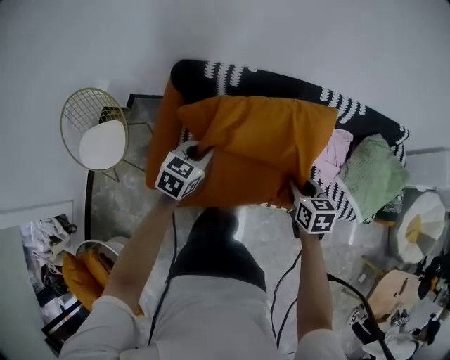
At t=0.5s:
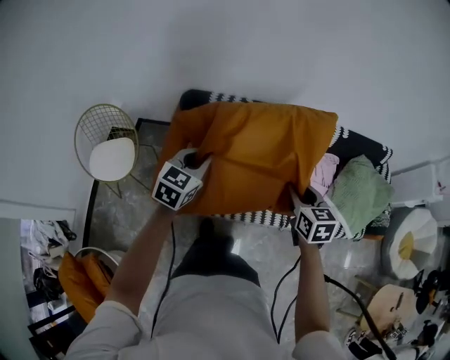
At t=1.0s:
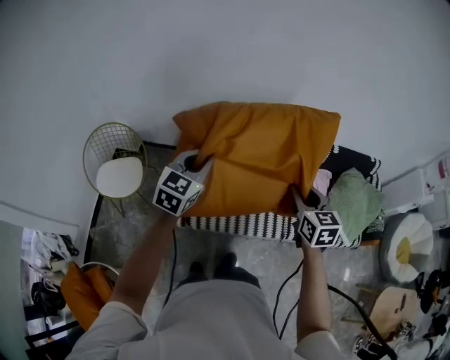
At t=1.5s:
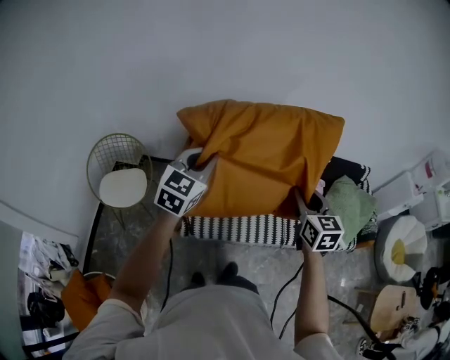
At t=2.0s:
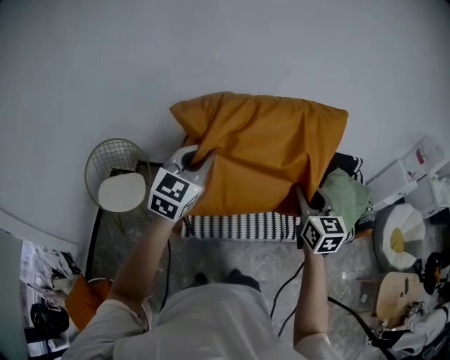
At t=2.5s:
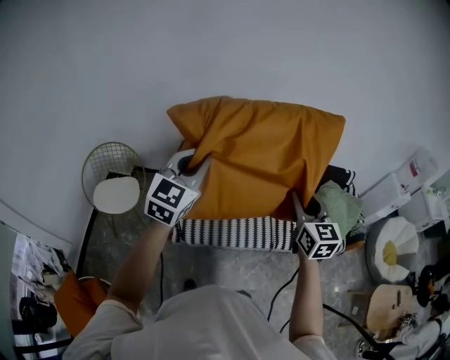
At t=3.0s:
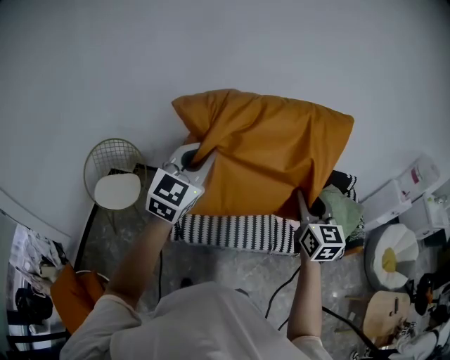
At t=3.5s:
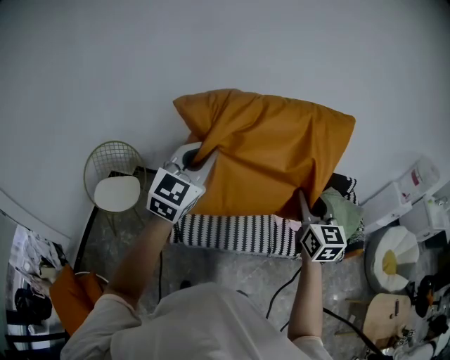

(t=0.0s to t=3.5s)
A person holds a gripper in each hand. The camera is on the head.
t=0.0s - t=2.0s: Both grippers travel together upward and backward, roughly 50 cm. The left gripper tips its fingers upward by some 30 degrees. The right gripper angles its fingers upward, by about 30 degrees.
t=2.0s - t=3.5s: The left gripper travels upward and to the right by about 10 cm; the right gripper travels to the right and upward by approximately 10 cm.

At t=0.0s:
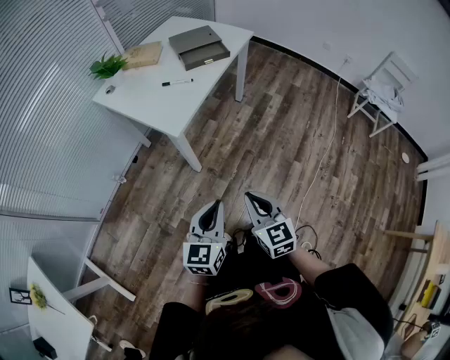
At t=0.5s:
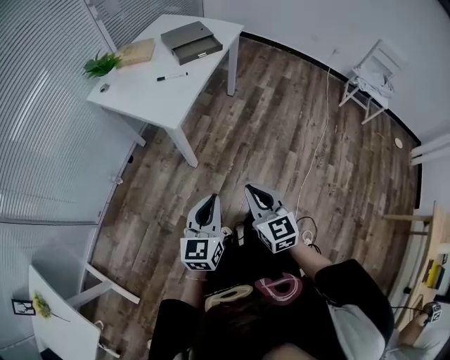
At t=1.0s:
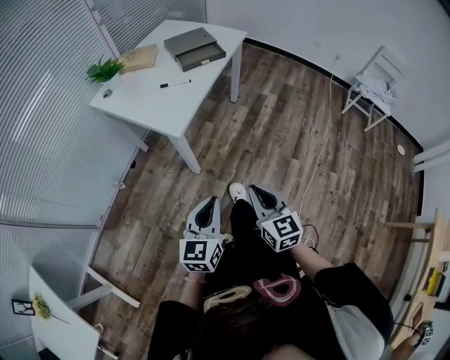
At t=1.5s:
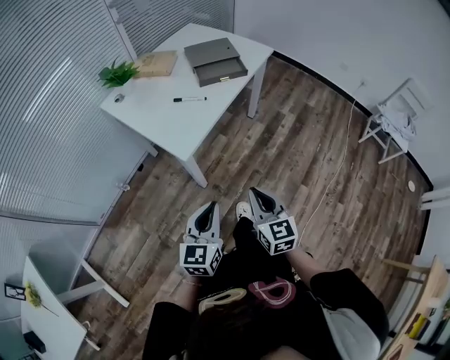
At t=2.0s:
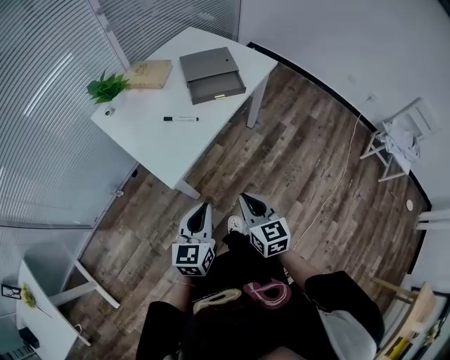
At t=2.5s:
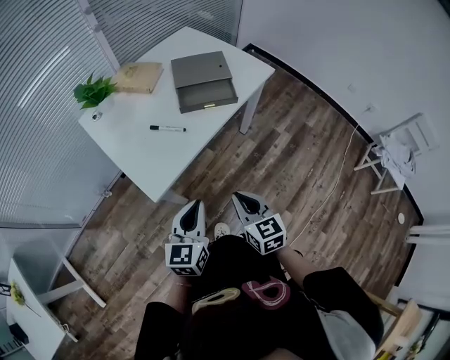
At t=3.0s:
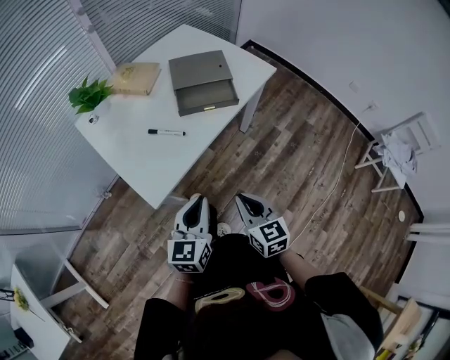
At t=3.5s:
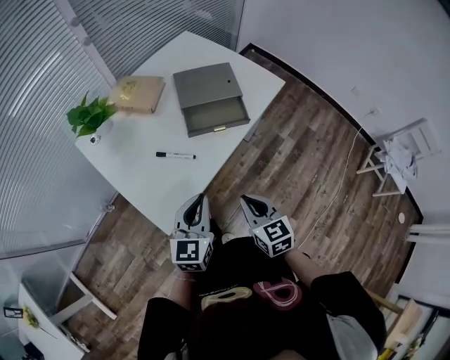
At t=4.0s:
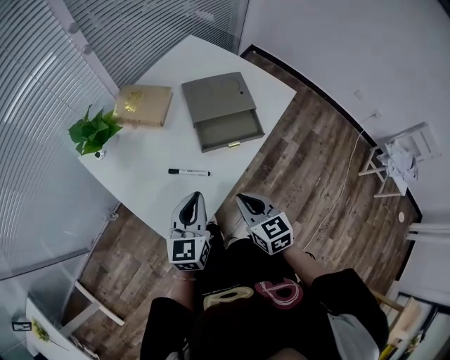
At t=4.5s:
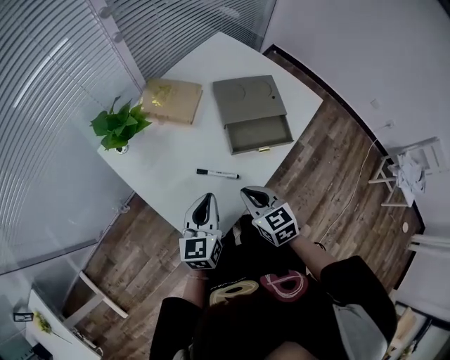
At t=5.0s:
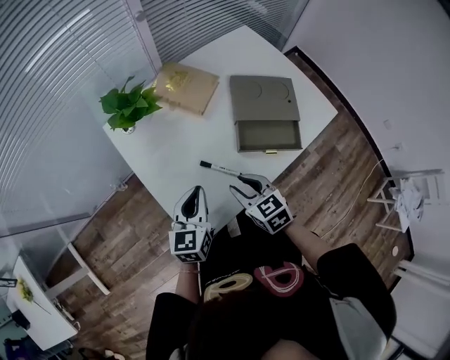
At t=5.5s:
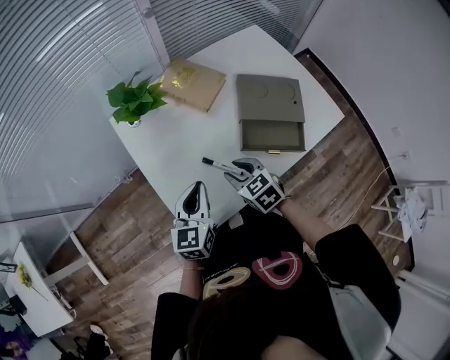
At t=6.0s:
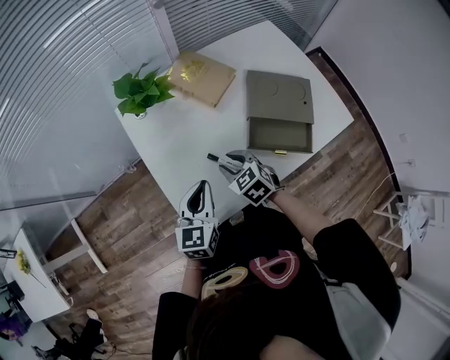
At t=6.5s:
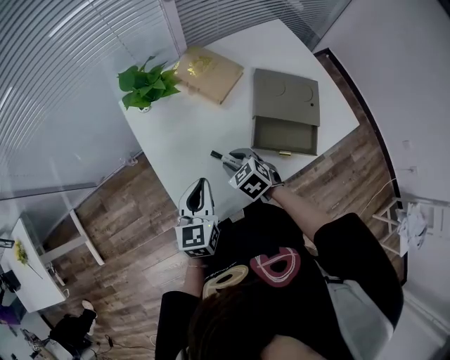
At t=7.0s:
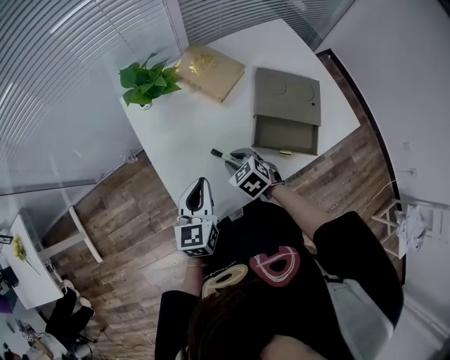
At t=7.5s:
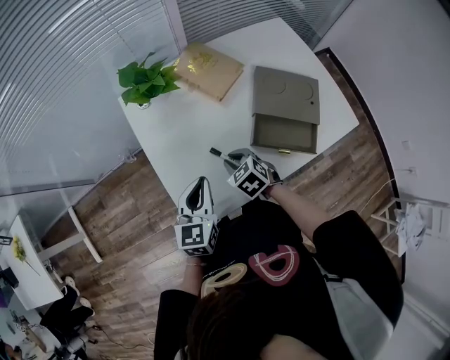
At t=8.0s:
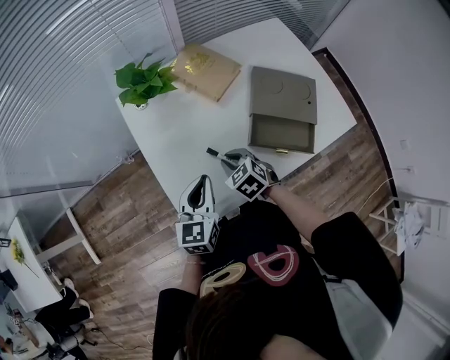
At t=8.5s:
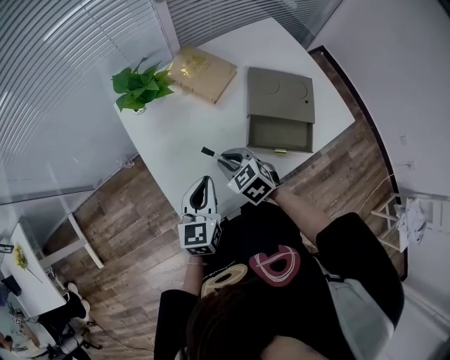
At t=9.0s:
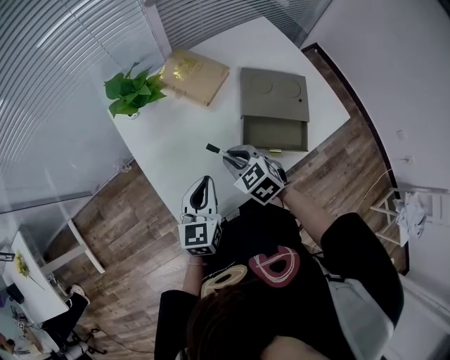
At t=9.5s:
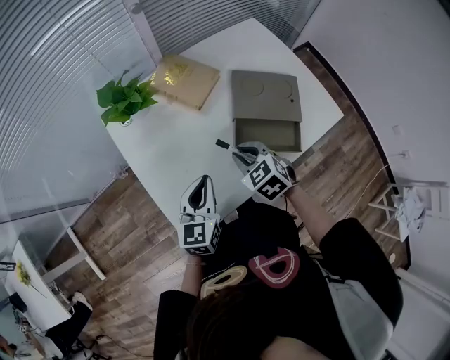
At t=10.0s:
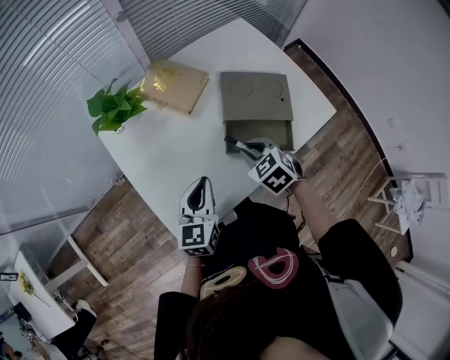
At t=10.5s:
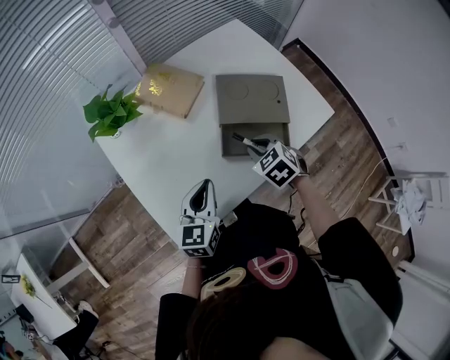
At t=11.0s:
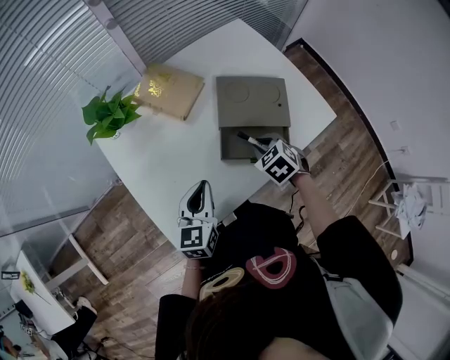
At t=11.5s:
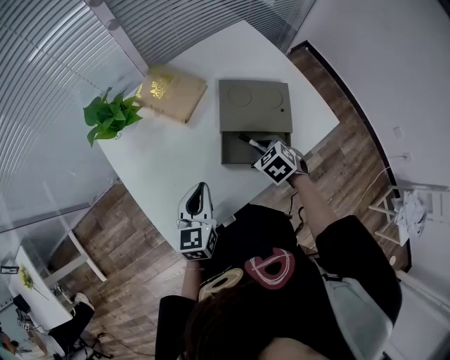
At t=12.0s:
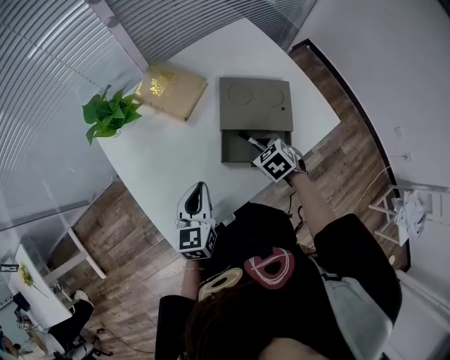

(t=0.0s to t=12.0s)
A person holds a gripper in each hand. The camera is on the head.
t=0.0s - t=2.0s: The grippers both shift forward by roughly 25 cm.
t=2.0s - t=4.0s: Both grippers move forward, some 25 cm.
t=4.0s - t=6.0s: The right gripper changes place by about 20 cm, turns by some 40 degrees, and opens up, while the left gripper changes place by about 10 cm, and changes its angle by about 20 degrees.
t=6.0s - t=8.0s: The grippers move only a little.
t=8.0s - t=10.0s: The left gripper heads to the right, covering some 5 cm, while the right gripper heads to the right and upward, covering some 15 cm.
t=10.0s - t=12.0s: The right gripper heads to the right and downward, covering approximately 10 cm.

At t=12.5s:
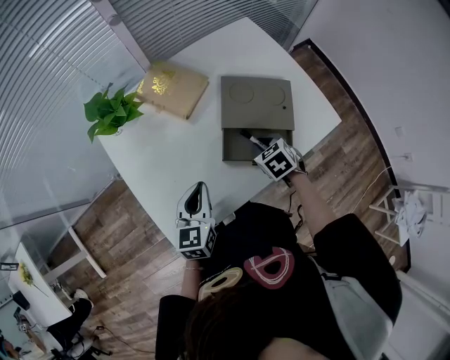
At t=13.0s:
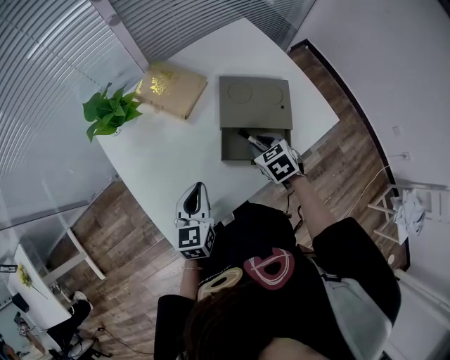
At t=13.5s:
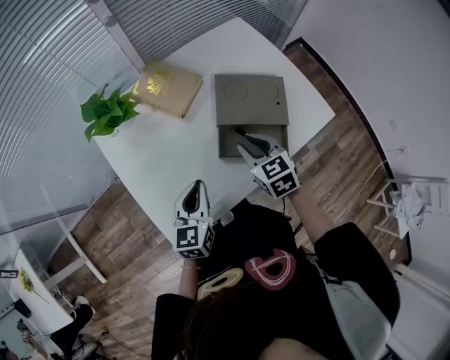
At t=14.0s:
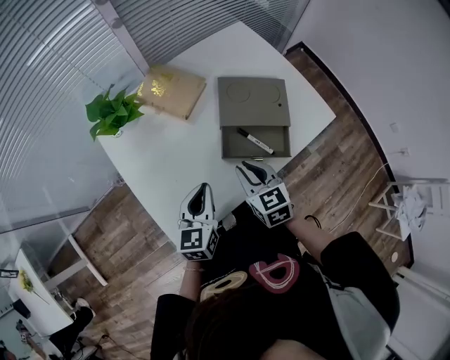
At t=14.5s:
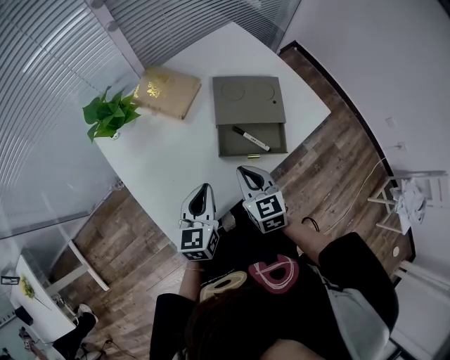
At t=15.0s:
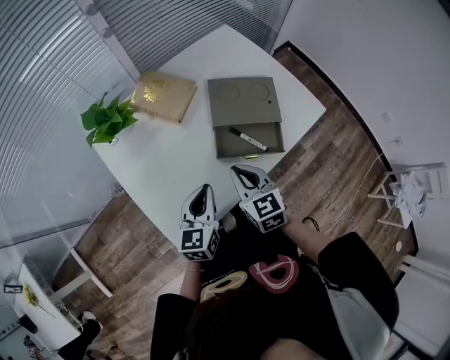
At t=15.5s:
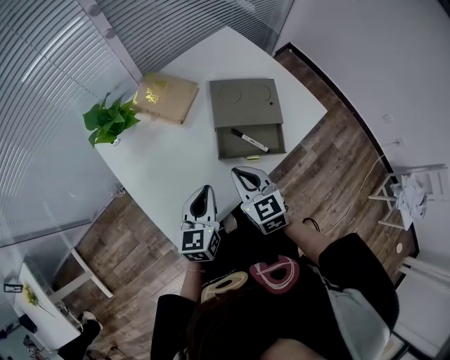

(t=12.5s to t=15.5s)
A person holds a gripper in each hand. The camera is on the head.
t=12.5s - t=14.0s: The right gripper travels upward, to the left and backward by roughly 15 cm, and turns by some 30 degrees.
t=14.0s - t=15.5s: The grippers move only a little.

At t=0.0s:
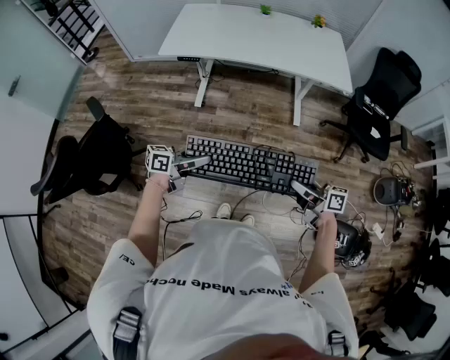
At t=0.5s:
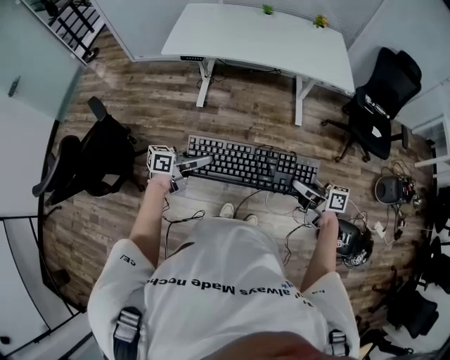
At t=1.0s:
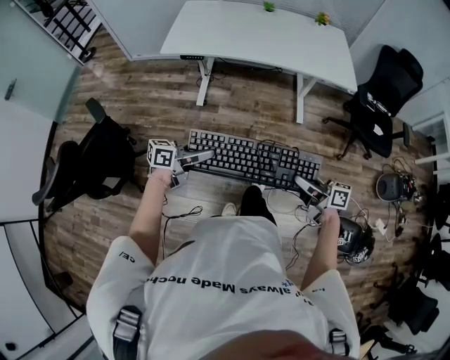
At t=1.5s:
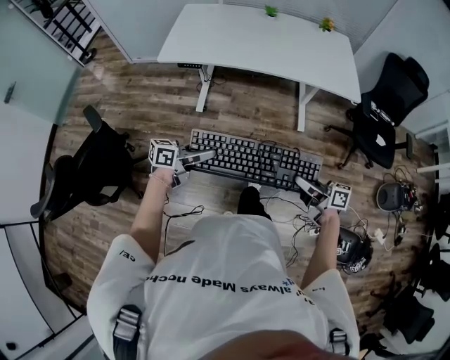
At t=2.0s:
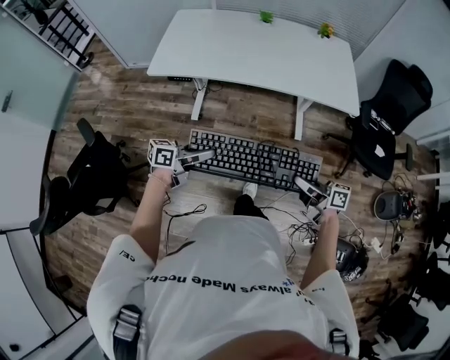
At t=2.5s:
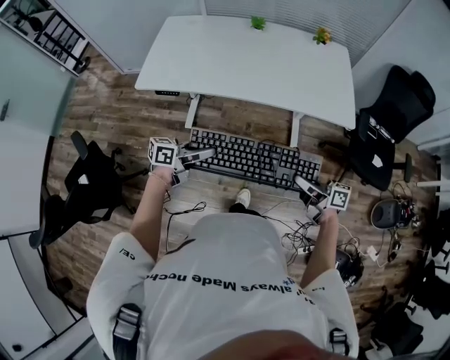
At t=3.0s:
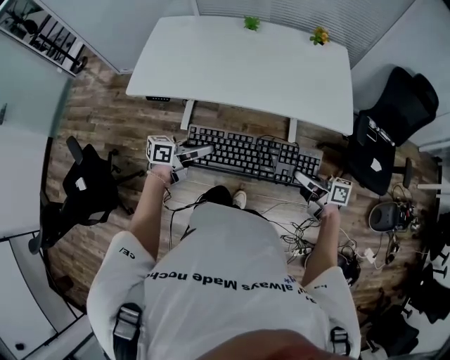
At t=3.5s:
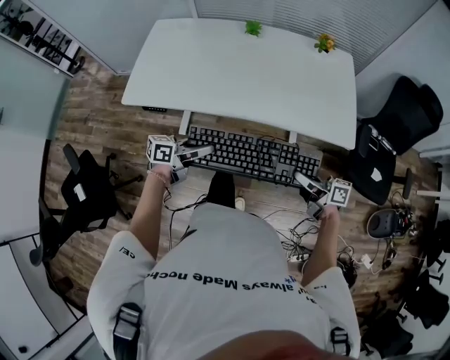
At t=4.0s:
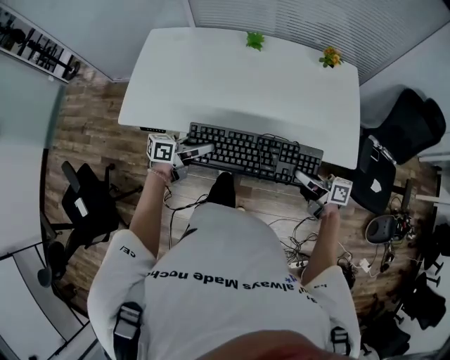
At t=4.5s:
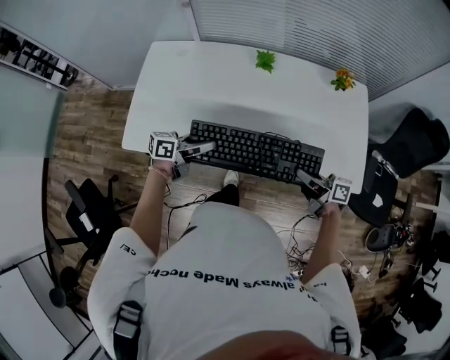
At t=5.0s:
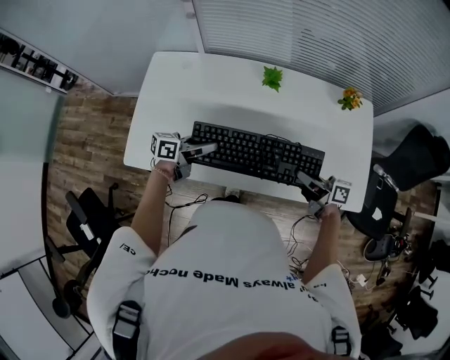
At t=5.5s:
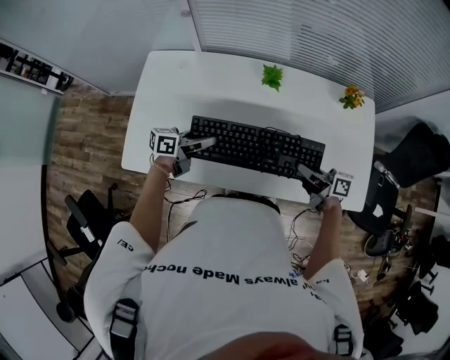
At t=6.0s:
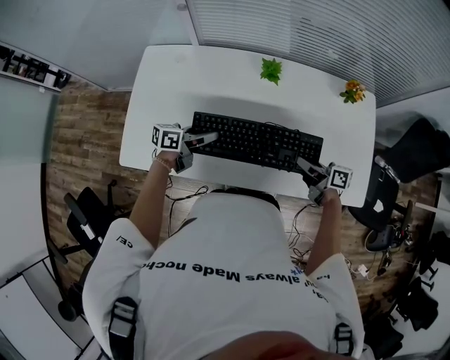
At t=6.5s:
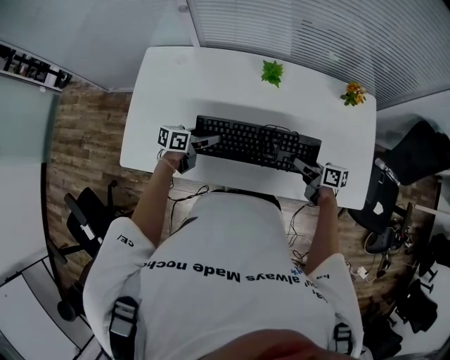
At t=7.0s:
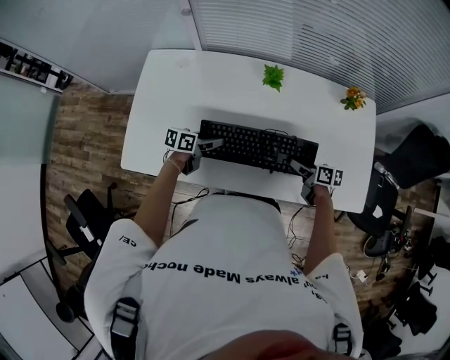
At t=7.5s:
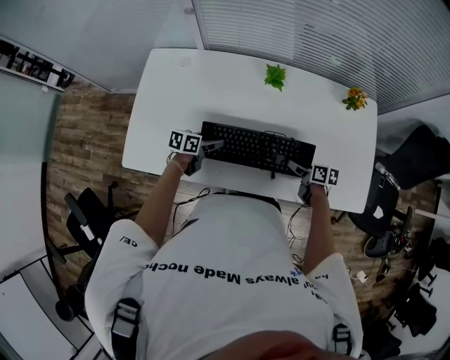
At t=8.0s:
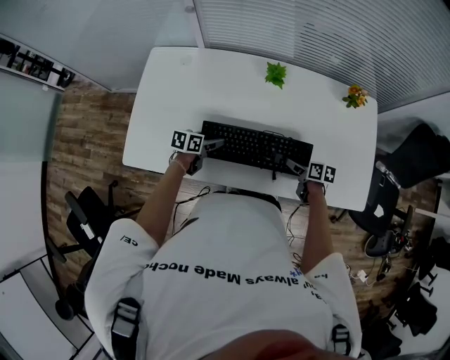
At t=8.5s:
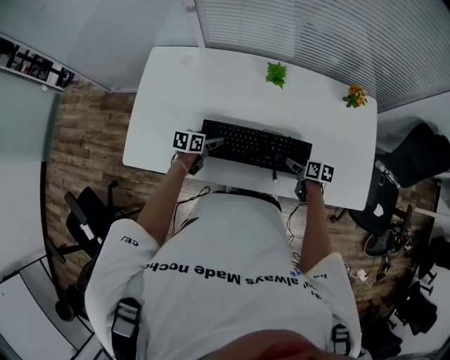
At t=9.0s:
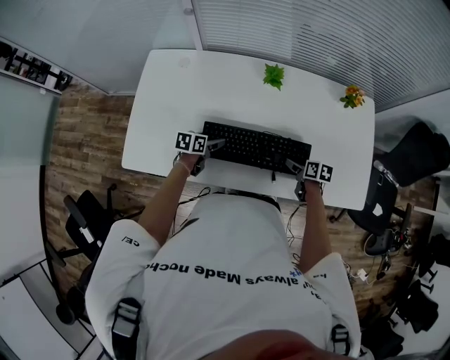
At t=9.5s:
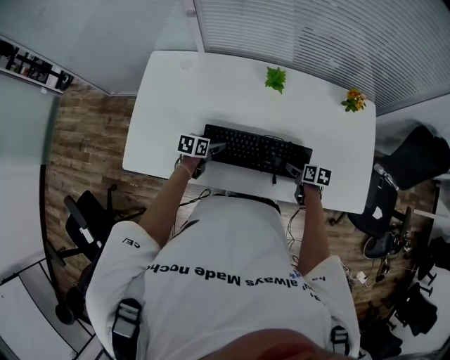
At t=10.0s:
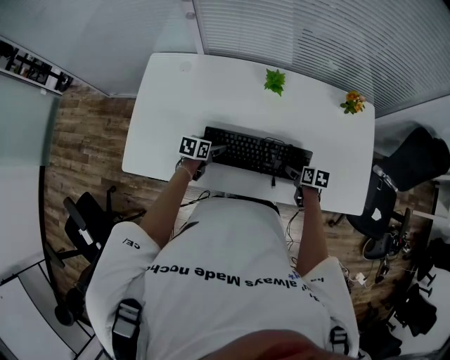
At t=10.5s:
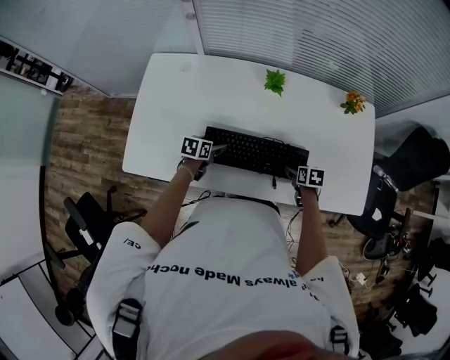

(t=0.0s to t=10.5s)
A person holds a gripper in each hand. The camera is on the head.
t=0.0s - t=2.0s: Both grippers move forward, approximately 20 cm.
t=2.0s - t=4.0s: The two grippers go about 35 cm forward.
t=4.0s - t=6.5s: Both grippers move forward, roughly 25 cm. The right gripper rotates roughly 20 degrees.
t=6.5s - t=8.5s: The two grippers go approximately 10 cm downward. The right gripper changes its angle by about 30 degrees, and opens up.
t=8.5s - t=10.5s: There are only small adjustments of the grippers.
